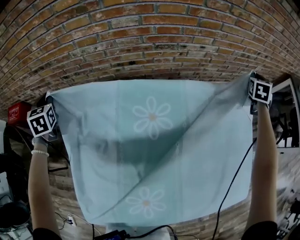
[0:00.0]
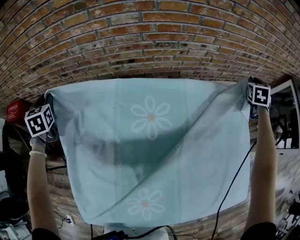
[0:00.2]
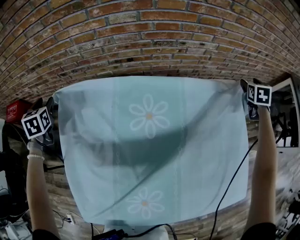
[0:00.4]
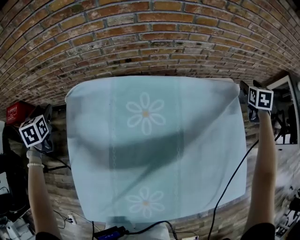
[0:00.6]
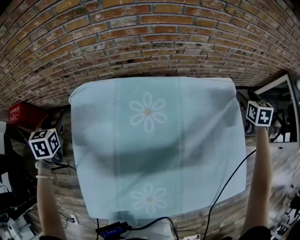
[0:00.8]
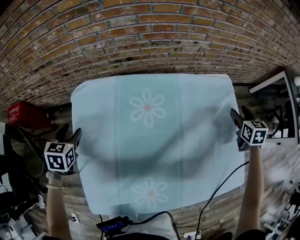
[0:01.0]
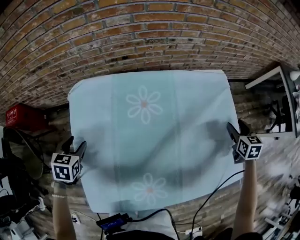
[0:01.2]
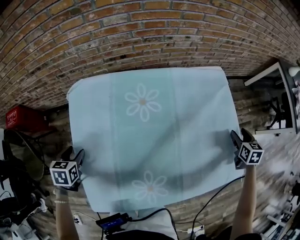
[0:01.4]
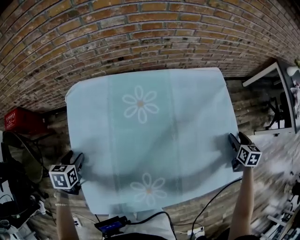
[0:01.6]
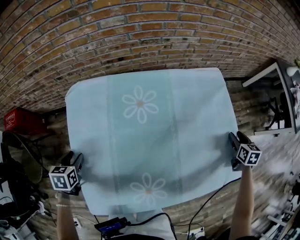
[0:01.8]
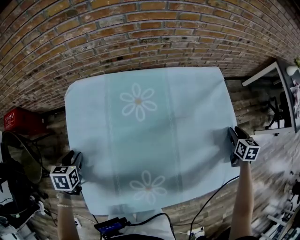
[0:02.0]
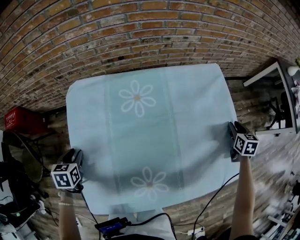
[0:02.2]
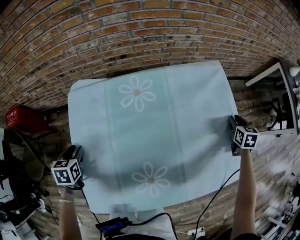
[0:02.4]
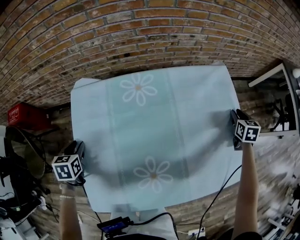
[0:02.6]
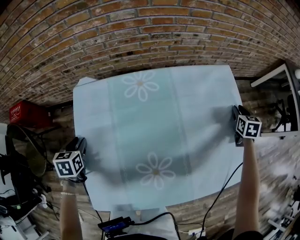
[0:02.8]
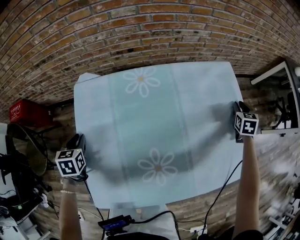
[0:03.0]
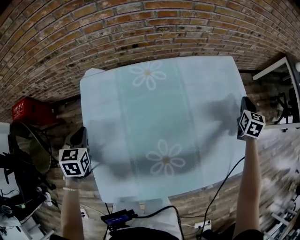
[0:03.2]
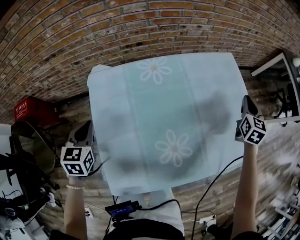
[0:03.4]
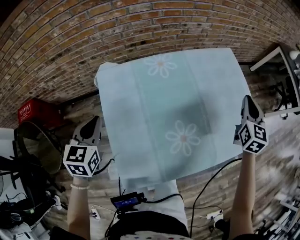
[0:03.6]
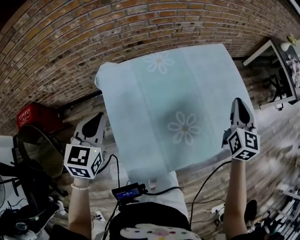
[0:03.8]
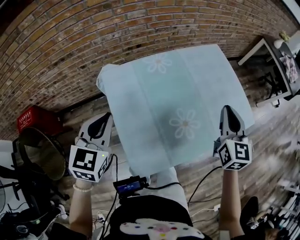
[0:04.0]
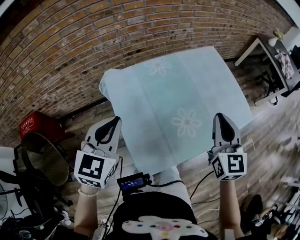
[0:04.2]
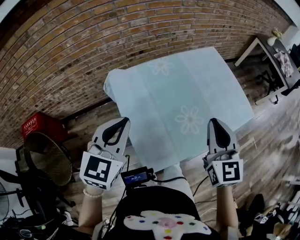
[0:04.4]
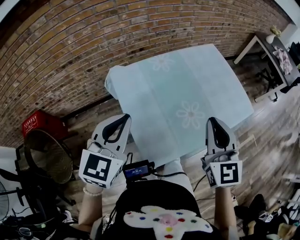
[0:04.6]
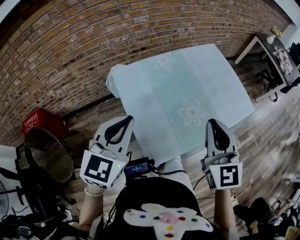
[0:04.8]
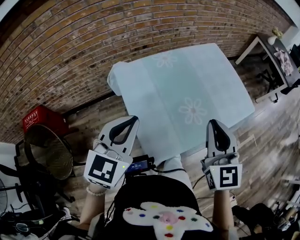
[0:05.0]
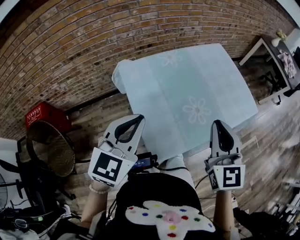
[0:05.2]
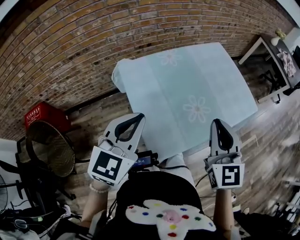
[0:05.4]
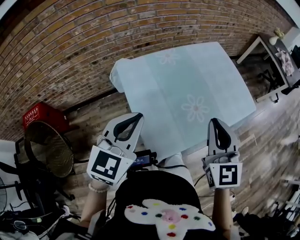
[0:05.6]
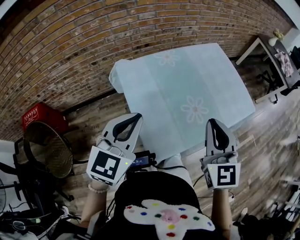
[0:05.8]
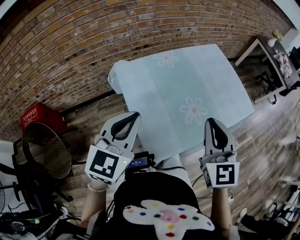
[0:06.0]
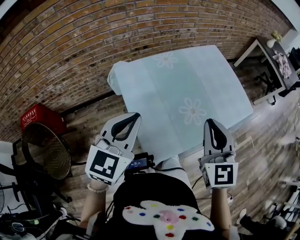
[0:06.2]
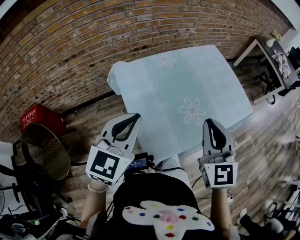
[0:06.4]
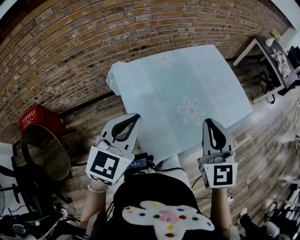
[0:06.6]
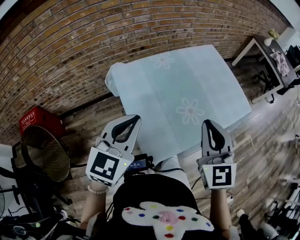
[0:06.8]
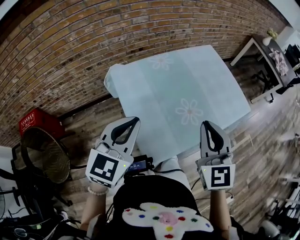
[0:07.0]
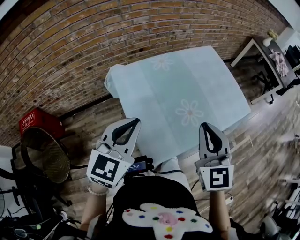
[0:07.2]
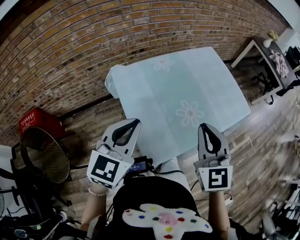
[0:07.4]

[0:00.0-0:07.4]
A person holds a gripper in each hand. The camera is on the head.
0:00.0 to 0:01.4: The right gripper is displaced backward by about 35 cm, changes its angle by approximately 30 degrees, and opens up, while the left gripper goes some 30 cm backward, to the right and downward, rotates some 40 degrees, and opens its fingers.
0:01.4 to 0:03.0: The left gripper closes up. The right gripper shifts some 10 cm forward, and closes.
0:03.0 to 0:04.4: The left gripper heads upward, covering some 25 cm, angles its fingers upward, by roughly 30 degrees, and closes its fingers, while the right gripper goes approximately 60 cm backward, to the left and upward, and tilts its fingers about 30 degrees upward.
0:04.4 to 0:06.0: The right gripper moves backward, some 5 cm.
0:06.0 to 0:07.4: The two grippers keep their place.

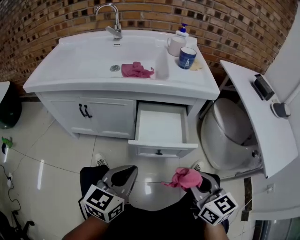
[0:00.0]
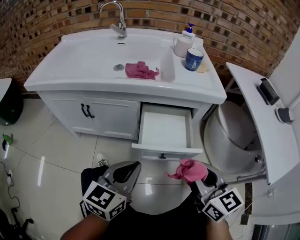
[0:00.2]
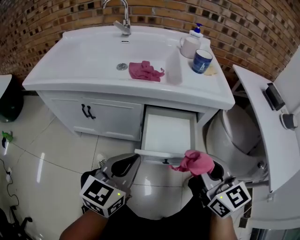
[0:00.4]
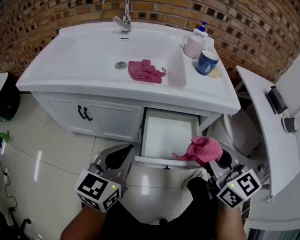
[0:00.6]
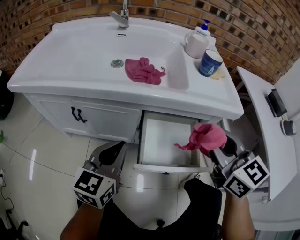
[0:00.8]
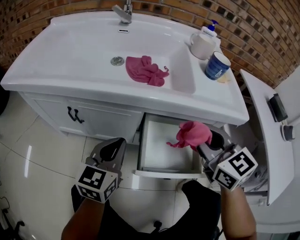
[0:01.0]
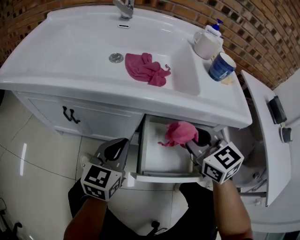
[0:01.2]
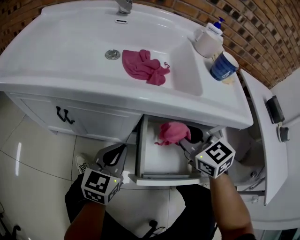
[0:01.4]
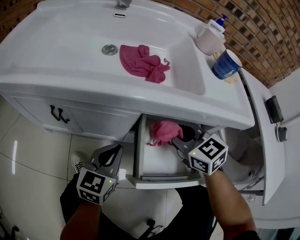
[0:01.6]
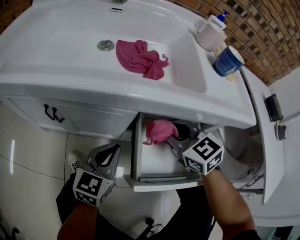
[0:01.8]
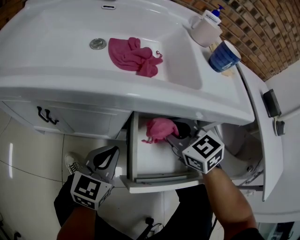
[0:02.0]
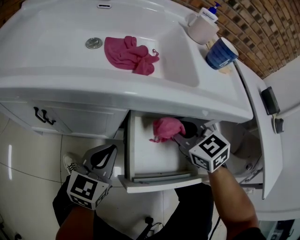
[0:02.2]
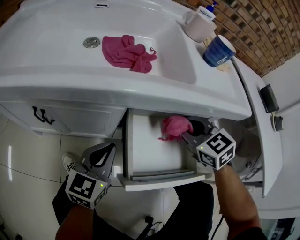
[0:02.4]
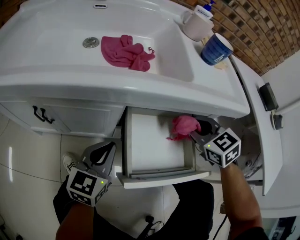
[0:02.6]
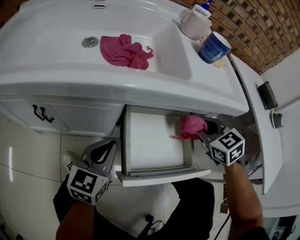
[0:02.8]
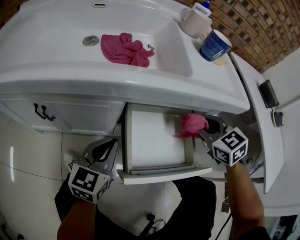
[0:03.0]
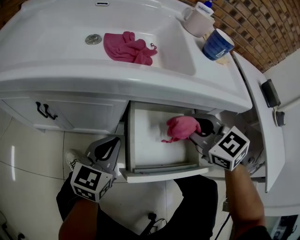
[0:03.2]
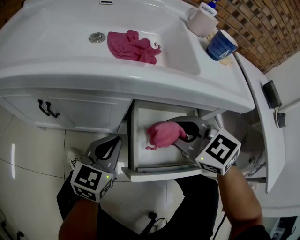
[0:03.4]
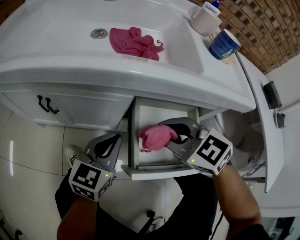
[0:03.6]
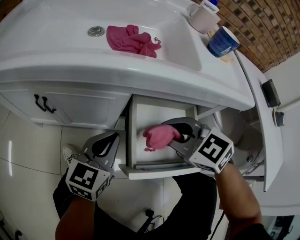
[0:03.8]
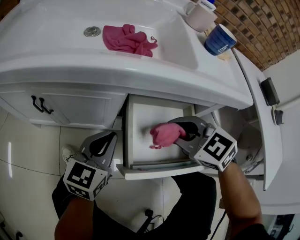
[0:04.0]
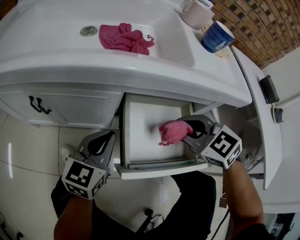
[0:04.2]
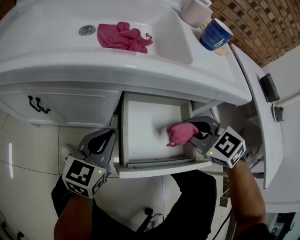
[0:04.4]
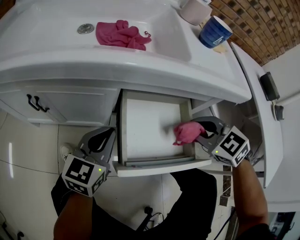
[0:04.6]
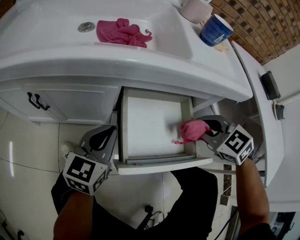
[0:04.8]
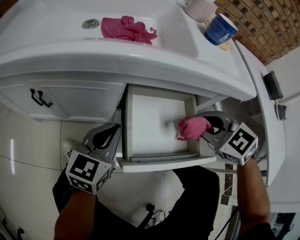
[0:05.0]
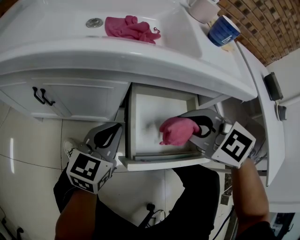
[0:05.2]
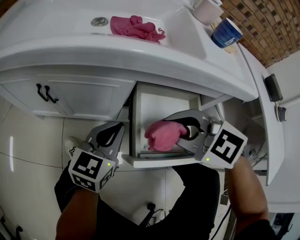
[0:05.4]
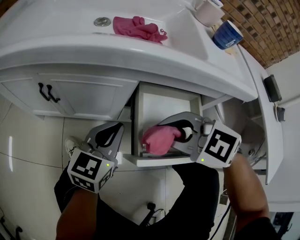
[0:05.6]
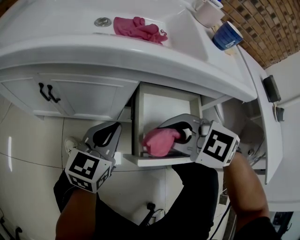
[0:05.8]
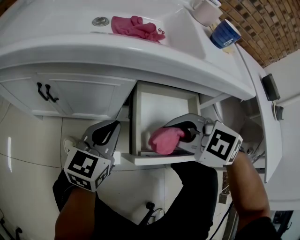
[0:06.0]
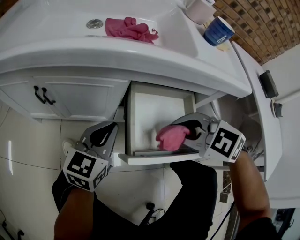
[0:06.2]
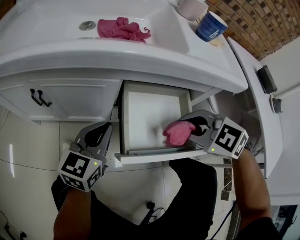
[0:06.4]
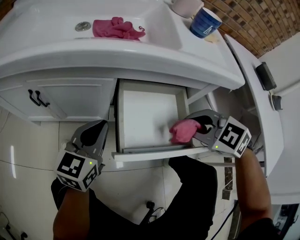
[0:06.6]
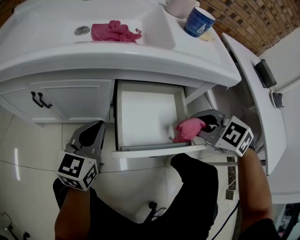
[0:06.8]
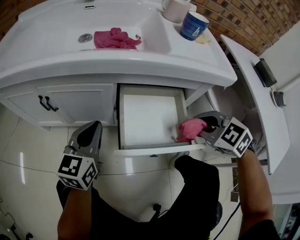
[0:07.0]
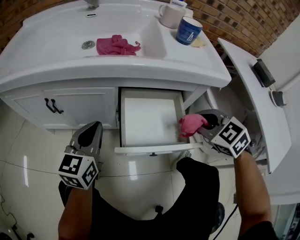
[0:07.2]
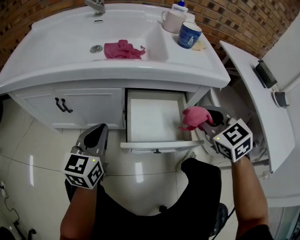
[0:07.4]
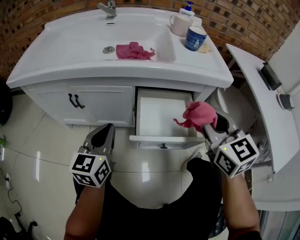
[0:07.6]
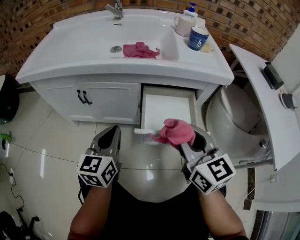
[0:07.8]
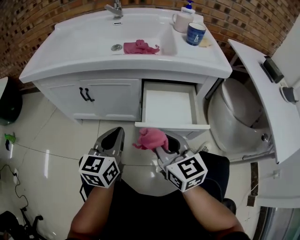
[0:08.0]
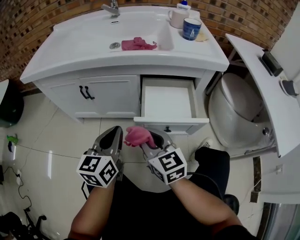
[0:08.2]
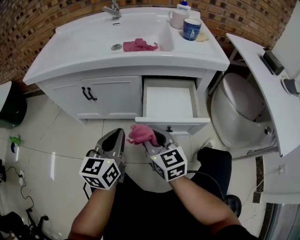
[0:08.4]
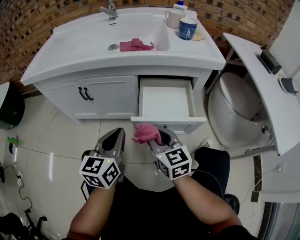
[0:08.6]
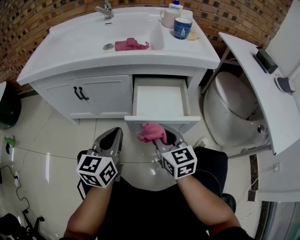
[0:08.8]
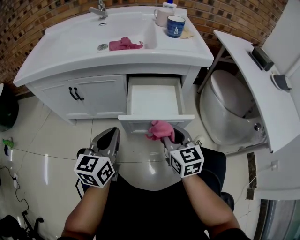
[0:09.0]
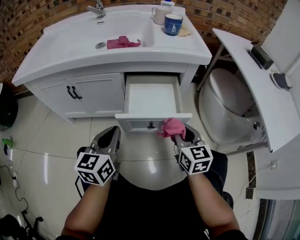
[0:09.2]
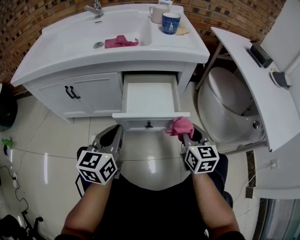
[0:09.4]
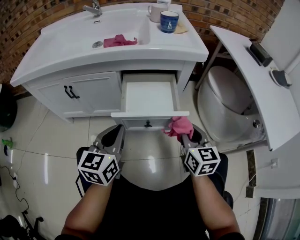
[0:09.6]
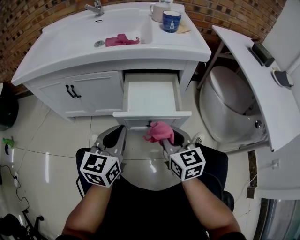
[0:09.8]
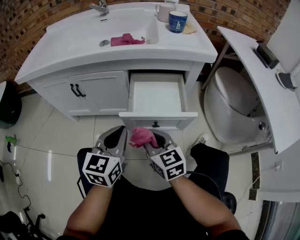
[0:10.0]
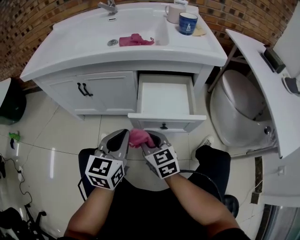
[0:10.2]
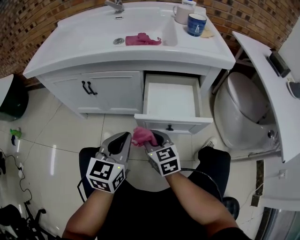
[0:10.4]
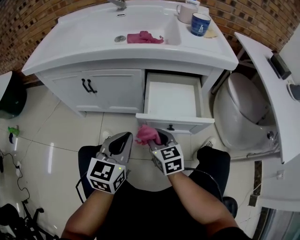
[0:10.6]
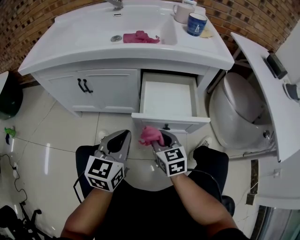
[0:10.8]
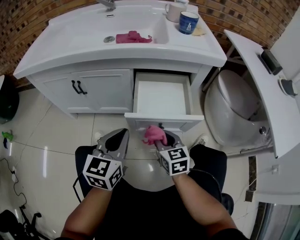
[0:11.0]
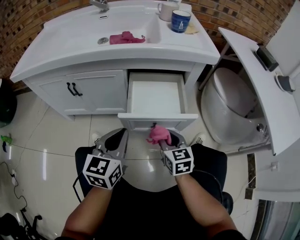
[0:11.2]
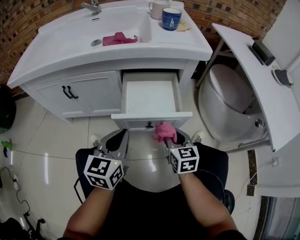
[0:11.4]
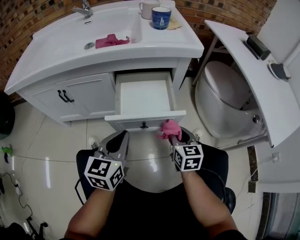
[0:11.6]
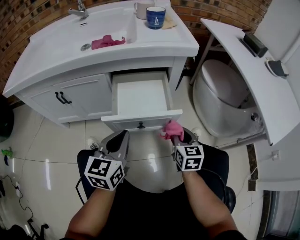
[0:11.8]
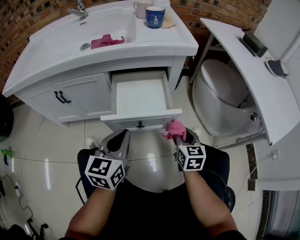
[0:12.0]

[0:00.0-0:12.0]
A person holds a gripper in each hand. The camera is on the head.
0:00.0 to 0:01.6: The left gripper moves forward and downward, some 25 cm. Meanwhile the right gripper moves forward, roughly 30 cm, and turns by about 30 degrees.
0:01.6 to 0:03.0: The right gripper shifts approximately 15 cm to the right.
0:03.0 to 0:04.4: The right gripper moves roughly 20 cm to the left and comes back.
0:04.4 to 0:06.0: The right gripper is displaced to the left by approximately 10 cm, and swivels about 20 degrees.
0:06.0 to 0:07.6: The right gripper shifts roughly 20 cm upward and to the right, and tips its fingers upward by roughly 40 degrees. Meanwhile the left gripper shifts some 10 cm upward and backward.
0:07.6 to 0:09.0: The right gripper is displaced downward and backward by approximately 15 cm, and moves about 20 cm to the left and comes back, while the left gripper heads backward, covering roughly 10 cm.
0:09.0 to 0:10.4: The right gripper heads to the left and downward, covering about 15 cm.
0:10.4 to 0:12.0: The right gripper travels to the right by about 25 cm, and rotates some 30 degrees; the left gripper moves to the right, about 10 cm.

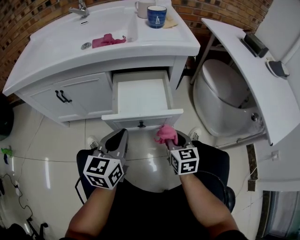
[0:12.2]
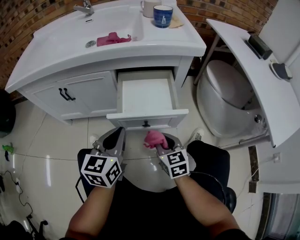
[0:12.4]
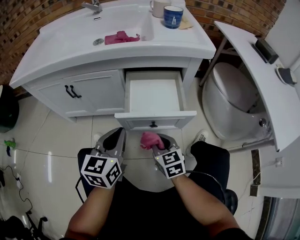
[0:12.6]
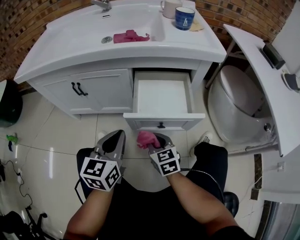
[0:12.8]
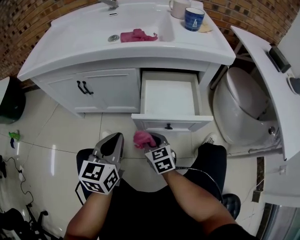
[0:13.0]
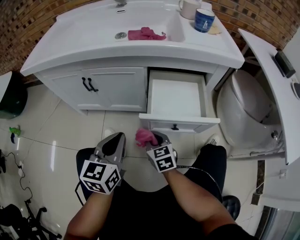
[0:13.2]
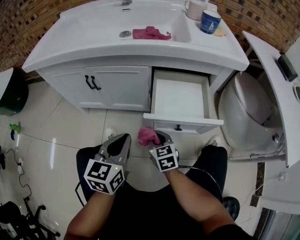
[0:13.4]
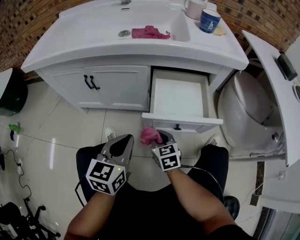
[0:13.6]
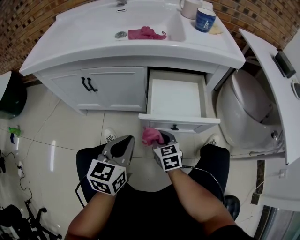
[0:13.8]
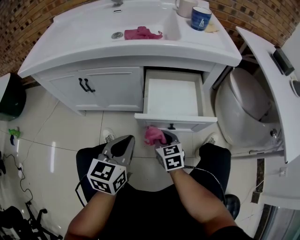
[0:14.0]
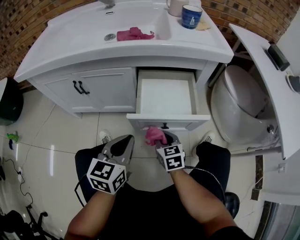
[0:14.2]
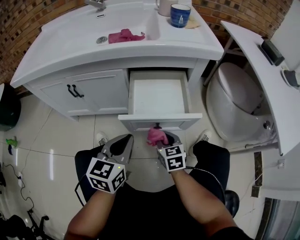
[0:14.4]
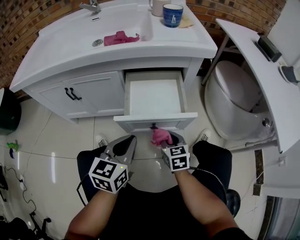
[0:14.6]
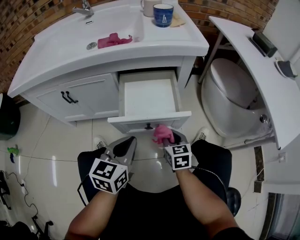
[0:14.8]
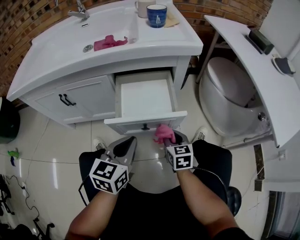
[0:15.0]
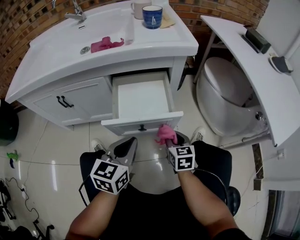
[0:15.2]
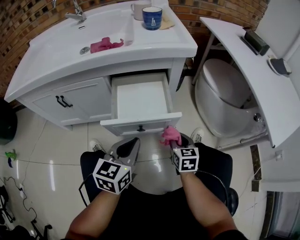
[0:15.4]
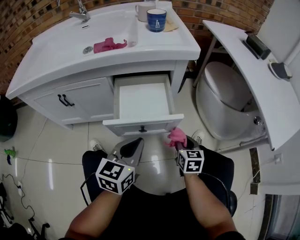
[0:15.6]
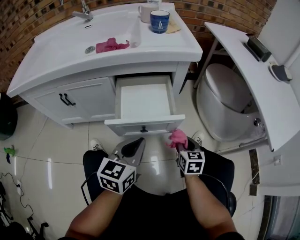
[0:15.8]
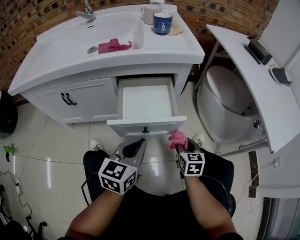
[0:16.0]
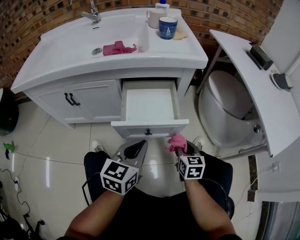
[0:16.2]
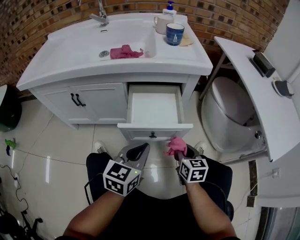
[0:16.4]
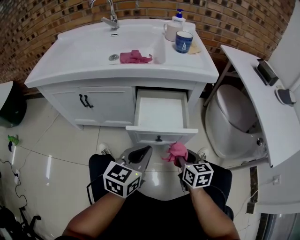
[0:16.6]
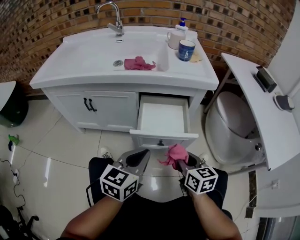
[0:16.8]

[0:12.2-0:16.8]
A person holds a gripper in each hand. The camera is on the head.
0:12.2 to 0:13.8: The right gripper is displaced to the left by some 20 cm, while the left gripper shifts some 10 cm to the left.
0:13.8 to 0:15.2: The left gripper heads to the right, covering about 15 cm; the right gripper travels to the right by about 20 cm.
0:15.2 to 0:16.8: The right gripper goes some 15 cm upward. The left gripper is displaced upward by some 5 cm.
